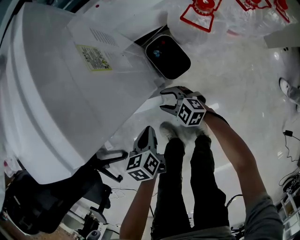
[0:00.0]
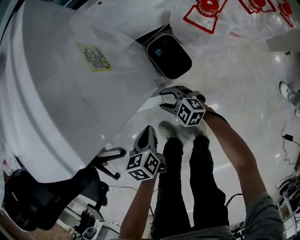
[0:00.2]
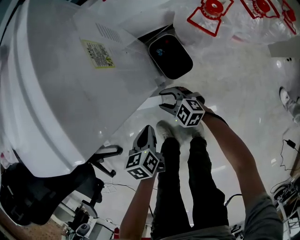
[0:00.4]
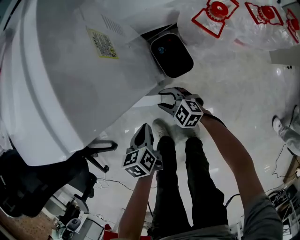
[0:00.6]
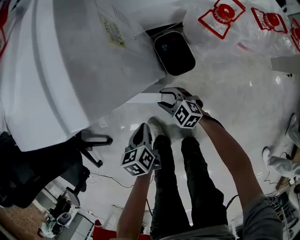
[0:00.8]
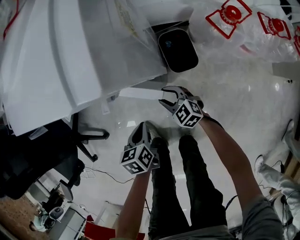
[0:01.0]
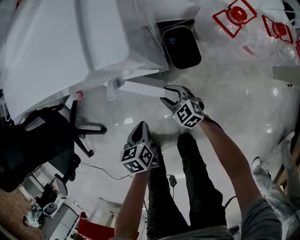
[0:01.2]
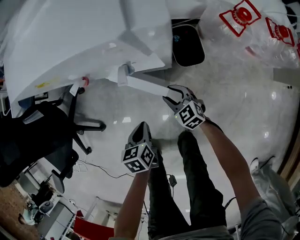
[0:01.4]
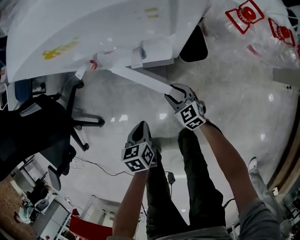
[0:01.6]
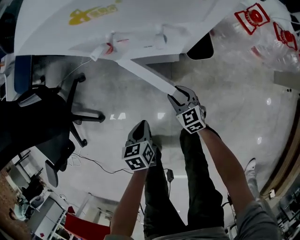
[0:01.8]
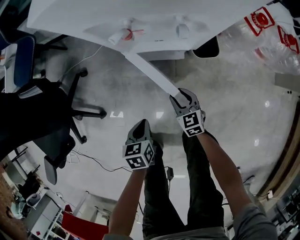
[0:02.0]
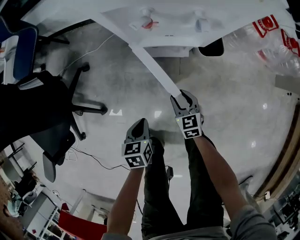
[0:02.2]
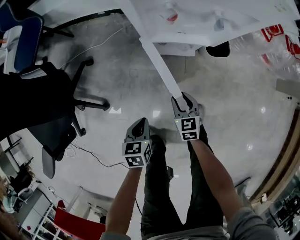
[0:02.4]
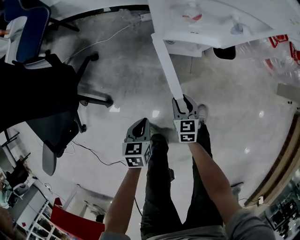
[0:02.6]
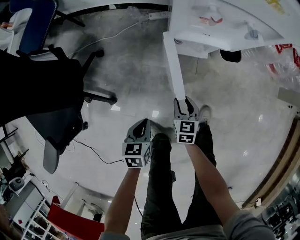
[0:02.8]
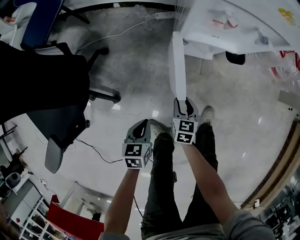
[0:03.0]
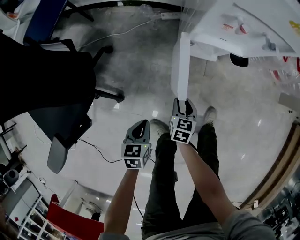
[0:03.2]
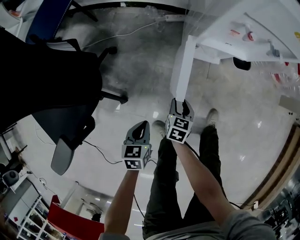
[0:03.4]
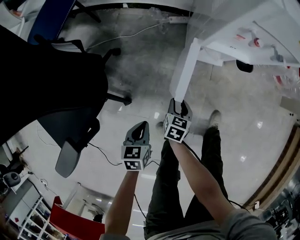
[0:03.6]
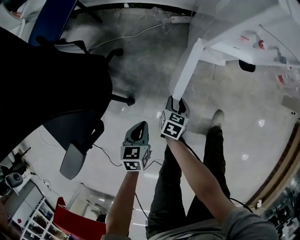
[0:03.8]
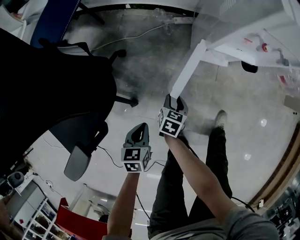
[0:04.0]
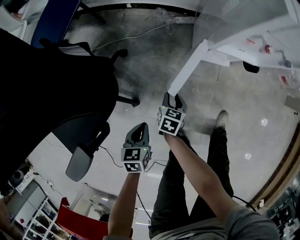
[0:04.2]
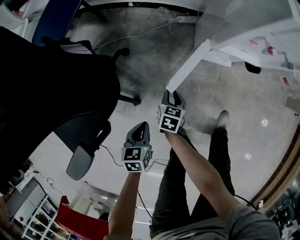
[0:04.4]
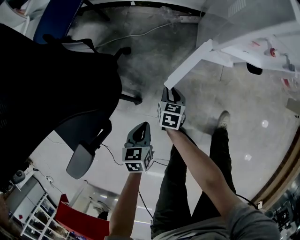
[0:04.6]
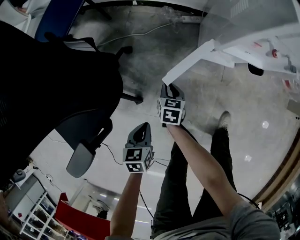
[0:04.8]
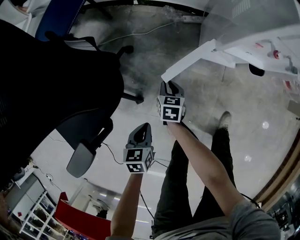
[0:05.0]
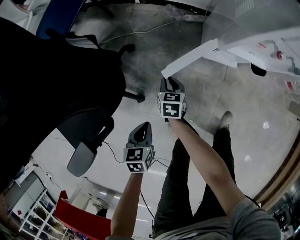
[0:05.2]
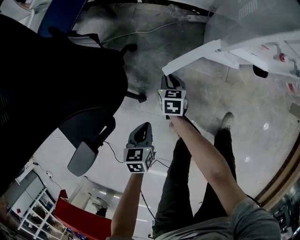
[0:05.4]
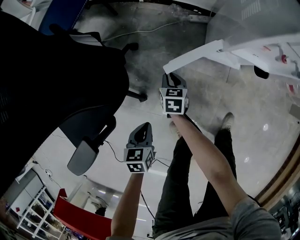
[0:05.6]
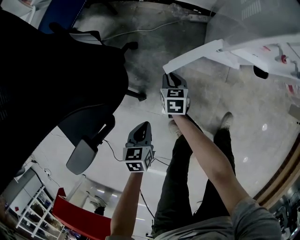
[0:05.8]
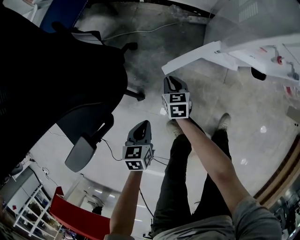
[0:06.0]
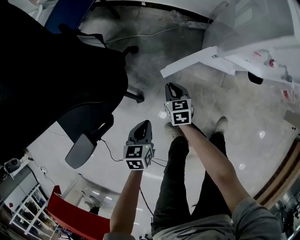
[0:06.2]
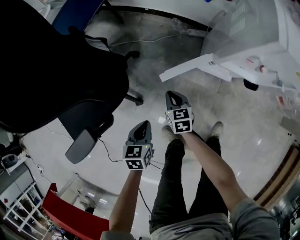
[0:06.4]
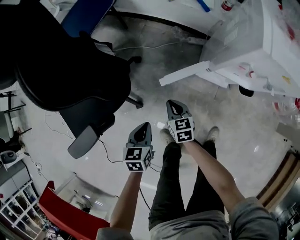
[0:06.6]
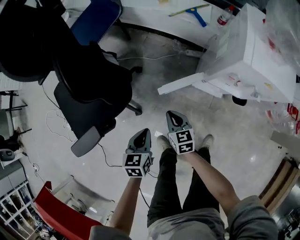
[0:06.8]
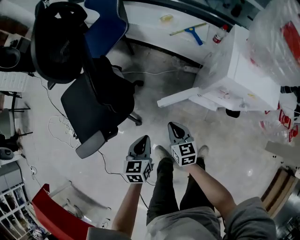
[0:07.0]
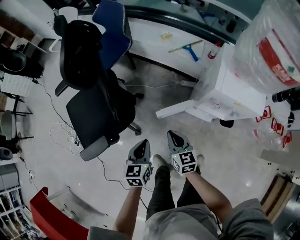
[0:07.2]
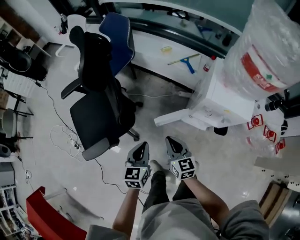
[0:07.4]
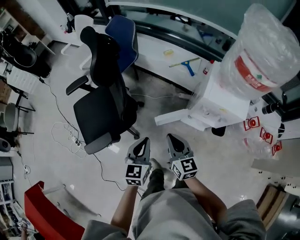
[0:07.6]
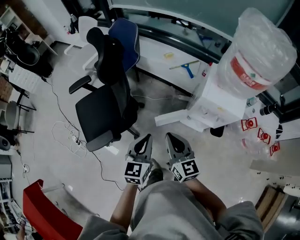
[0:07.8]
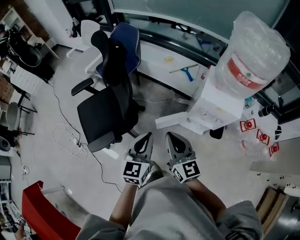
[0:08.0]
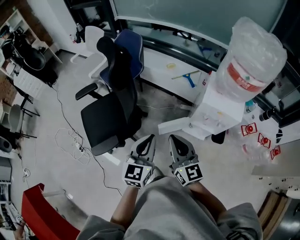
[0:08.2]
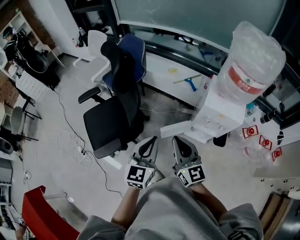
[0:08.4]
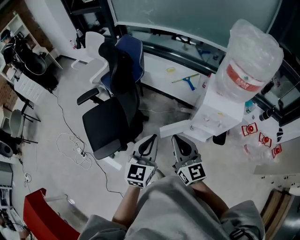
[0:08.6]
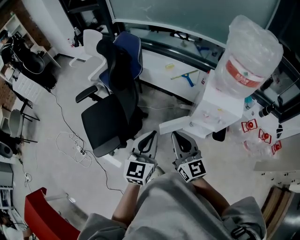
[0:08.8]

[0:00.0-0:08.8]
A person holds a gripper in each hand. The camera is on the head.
0:00.0 to 0:01.4: The right gripper moves backward, roughly 5 cm. Meanwhile the left gripper shifts some 10 cm backward and to the left.
0:01.4 to 0:03.0: Both grippers travel together to the left and backward, about 25 cm. The right gripper rotates about 40 degrees.
0:03.0 to 0:04.4: The two grippers go some 15 cm to the left.
0:04.4 to 0:05.8: The right gripper moves to the left and forward, roughly 10 cm.
0:05.8 to 0:07.4: The grippers both shift upward by roughly 40 cm. The right gripper changes its angle by some 30 degrees, while the left gripper changes its angle by some 30 degrees.
0:07.4 to 0:08.8: Both grippers move upward, roughly 20 cm. The left gripper turns by roughly 20 degrees. The right gripper turns by about 30 degrees.

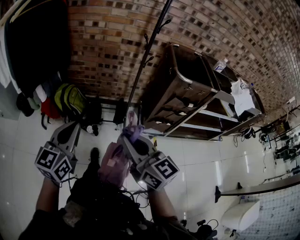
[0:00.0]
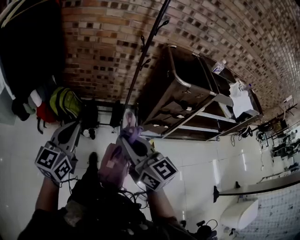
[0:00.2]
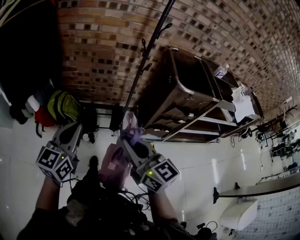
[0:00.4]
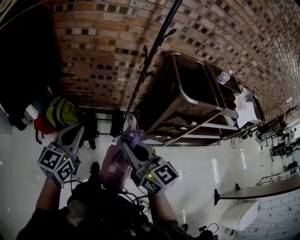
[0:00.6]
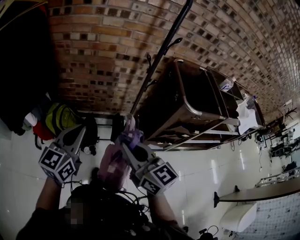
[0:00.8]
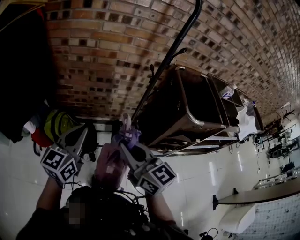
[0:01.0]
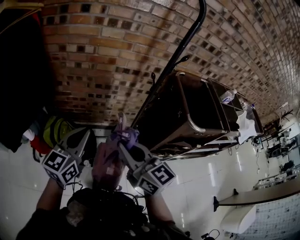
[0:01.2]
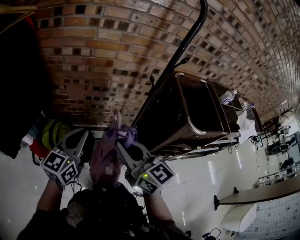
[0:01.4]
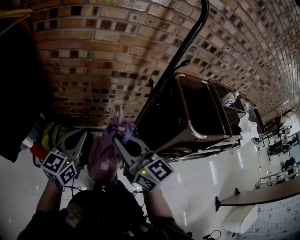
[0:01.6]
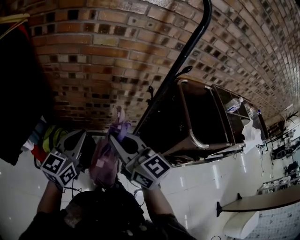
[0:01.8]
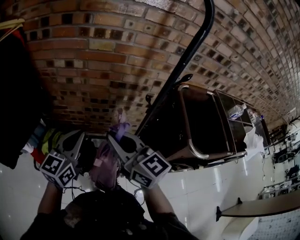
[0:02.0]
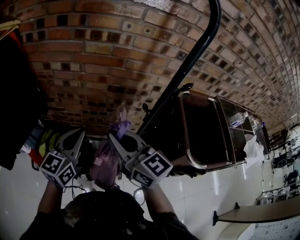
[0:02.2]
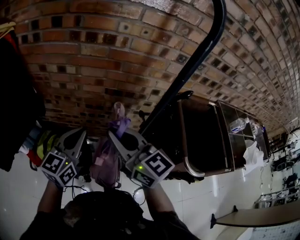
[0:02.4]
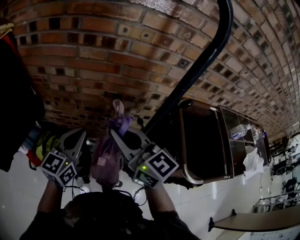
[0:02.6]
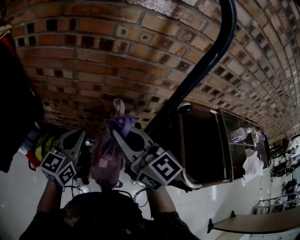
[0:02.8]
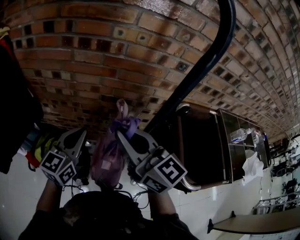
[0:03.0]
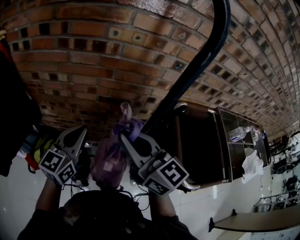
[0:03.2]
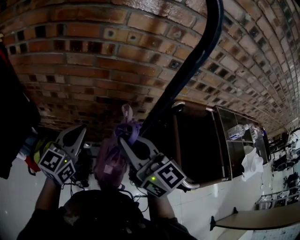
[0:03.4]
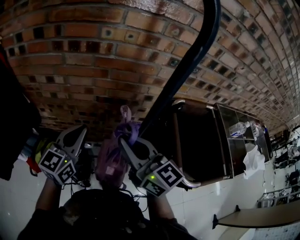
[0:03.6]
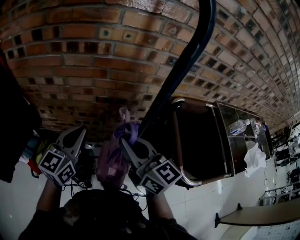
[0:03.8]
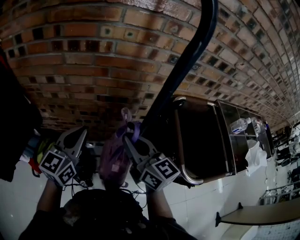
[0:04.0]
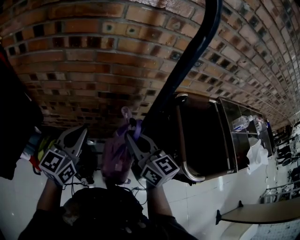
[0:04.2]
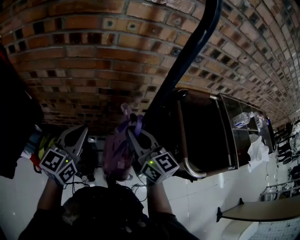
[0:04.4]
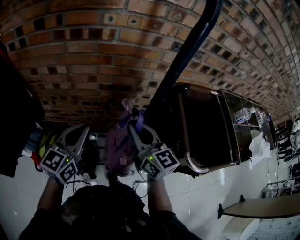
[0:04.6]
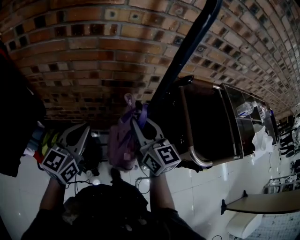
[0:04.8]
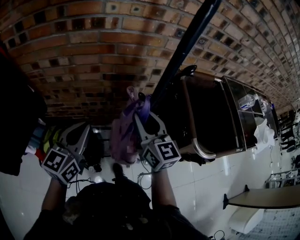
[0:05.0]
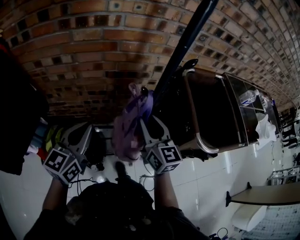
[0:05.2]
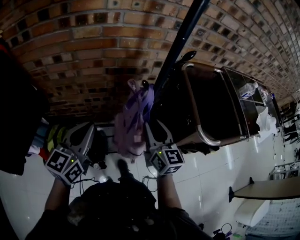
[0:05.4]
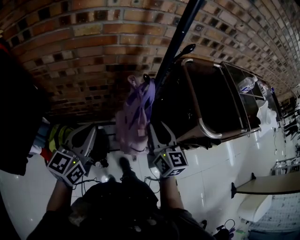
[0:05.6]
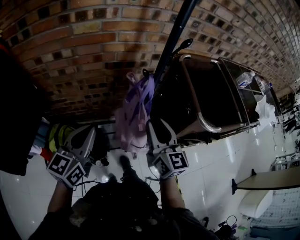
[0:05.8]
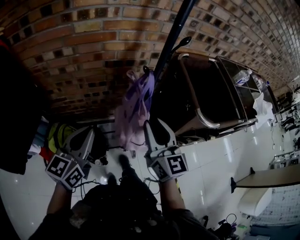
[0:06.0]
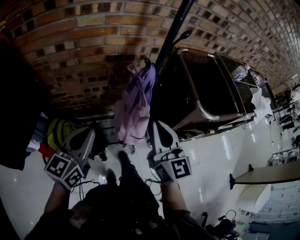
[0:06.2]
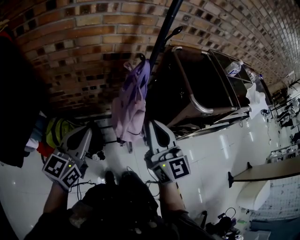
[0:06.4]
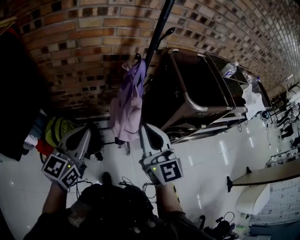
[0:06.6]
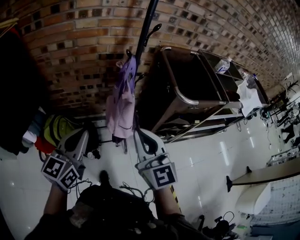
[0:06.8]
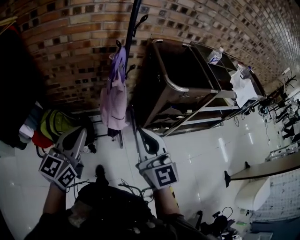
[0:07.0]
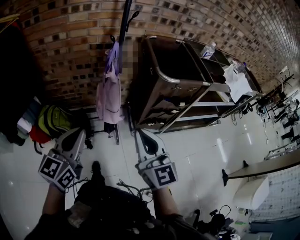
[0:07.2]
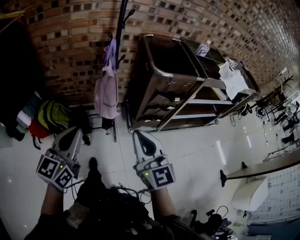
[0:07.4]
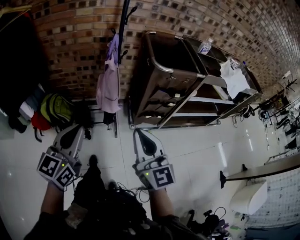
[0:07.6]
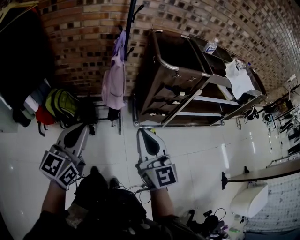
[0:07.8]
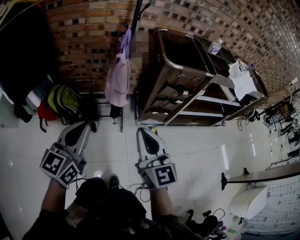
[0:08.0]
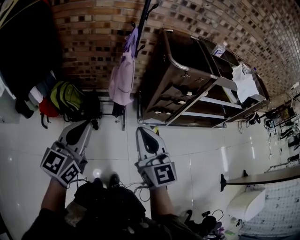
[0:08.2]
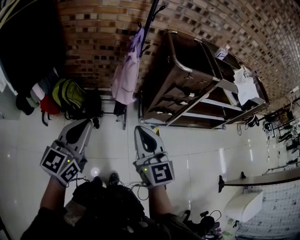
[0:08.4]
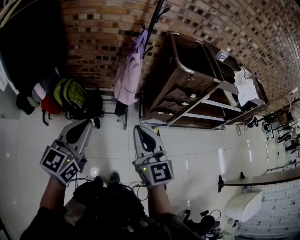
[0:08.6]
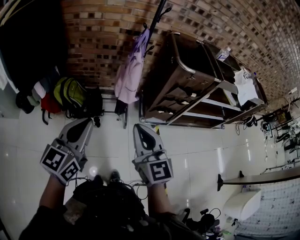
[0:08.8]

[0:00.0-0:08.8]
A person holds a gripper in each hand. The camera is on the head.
0:00.0 to 0:01.4: Both grippers travel together forward, about 40 cm.
0:01.4 to 0:03.0: The two grippers go about 25 cm forward and to the right.
0:03.0 to 0:04.4: The right gripper goes some 10 cm downward and to the right.
0:04.4 to 0:05.8: The two grippers go approximately 10 cm backward. The right gripper changes its angle by approximately 20 degrees, and opens up.
0:05.8 to 0:07.4: The right gripper travels backward by some 40 cm, and closes its fingers, while the left gripper heads backward and to the right, covering some 40 cm.
0:07.4 to 0:08.8: The right gripper goes about 15 cm to the left and backward; the left gripper moves backward and to the left, about 10 cm.

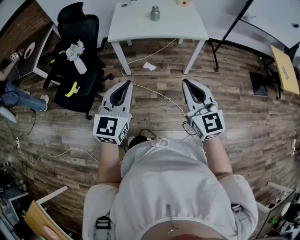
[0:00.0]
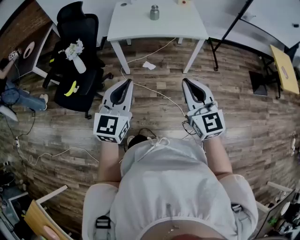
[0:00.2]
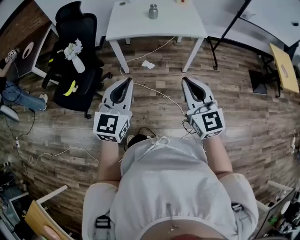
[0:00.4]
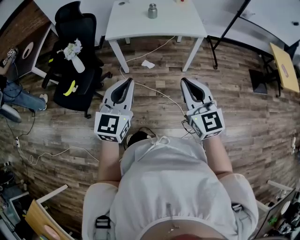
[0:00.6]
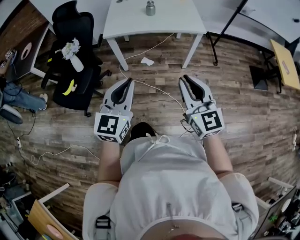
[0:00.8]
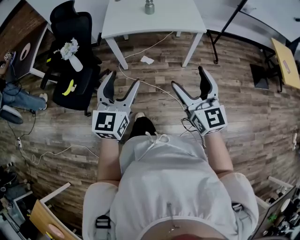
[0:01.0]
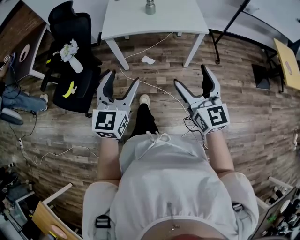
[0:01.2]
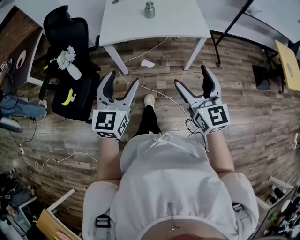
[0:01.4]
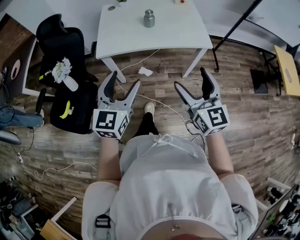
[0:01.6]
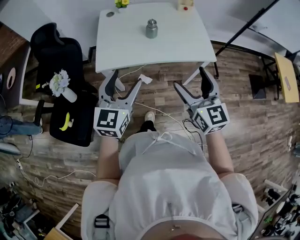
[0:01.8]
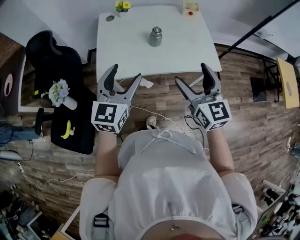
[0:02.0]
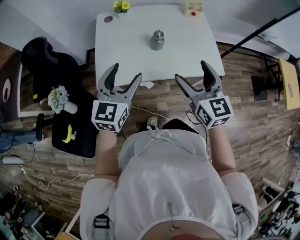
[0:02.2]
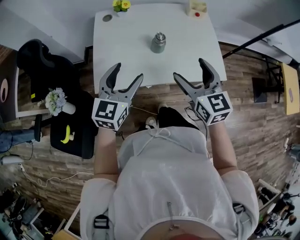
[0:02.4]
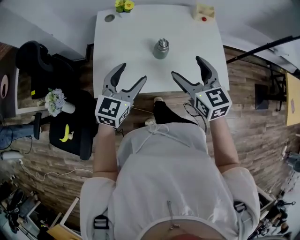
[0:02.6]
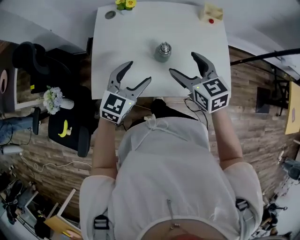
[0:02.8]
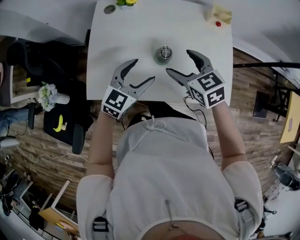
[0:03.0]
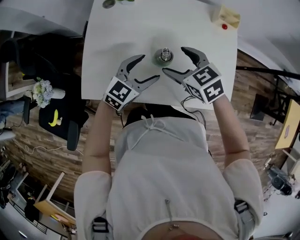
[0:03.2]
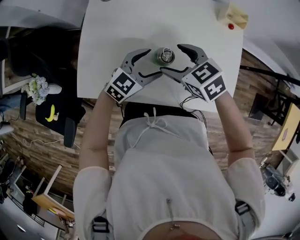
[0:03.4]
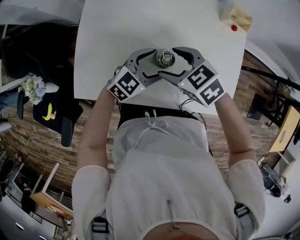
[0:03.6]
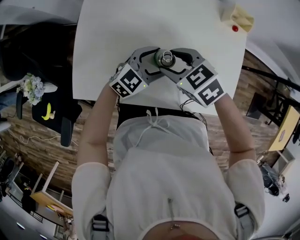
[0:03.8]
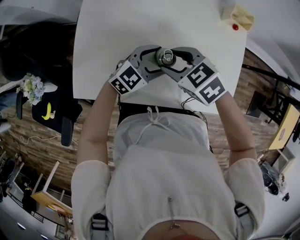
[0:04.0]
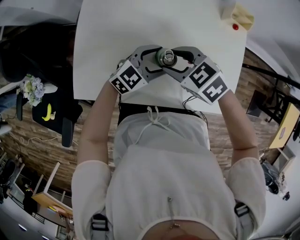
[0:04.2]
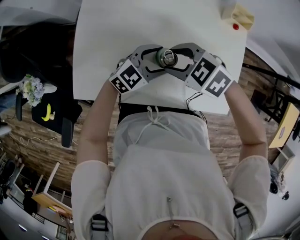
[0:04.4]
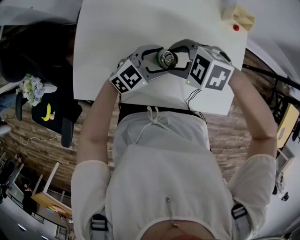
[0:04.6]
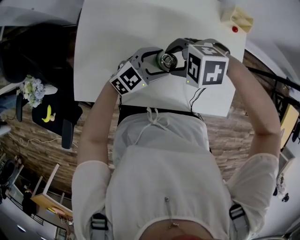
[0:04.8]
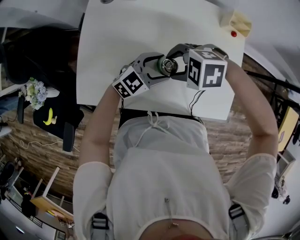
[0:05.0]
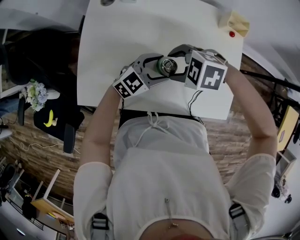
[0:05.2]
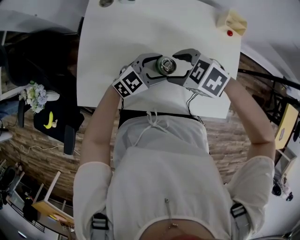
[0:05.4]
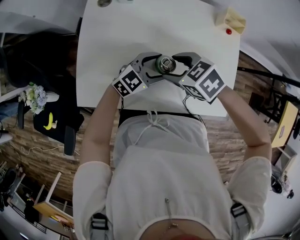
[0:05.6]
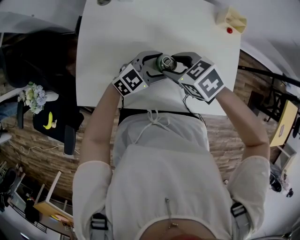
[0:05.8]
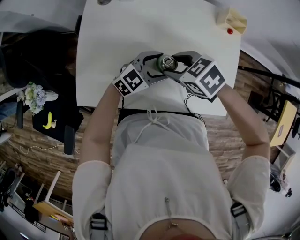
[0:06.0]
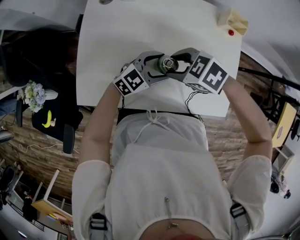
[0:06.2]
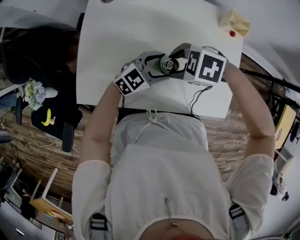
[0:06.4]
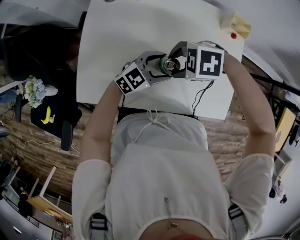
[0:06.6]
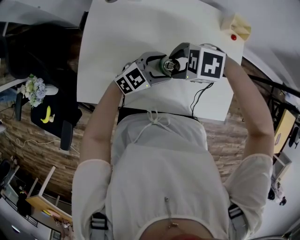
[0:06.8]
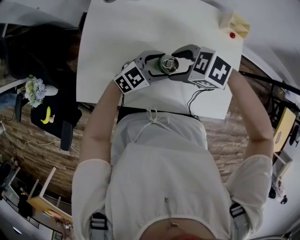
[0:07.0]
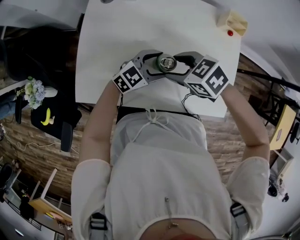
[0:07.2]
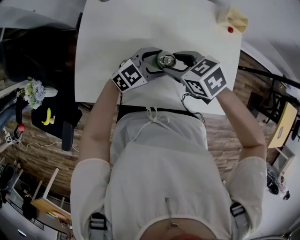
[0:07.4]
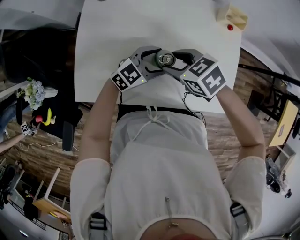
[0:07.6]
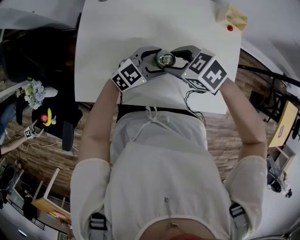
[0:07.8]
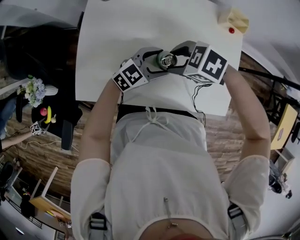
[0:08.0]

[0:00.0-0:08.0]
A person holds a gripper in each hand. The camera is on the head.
0:00.0 to 0:01.6: The grippers both shift forward by roughly 20 cm. The left gripper opens up. Meanwhile the right gripper opens up.
0:01.6 to 0:03.2: The two grippers travel together, forward, about 50 cm. The left gripper heads downward, covering about 20 cm, and turns by roughly 30 degrees. Meanwhile the right gripper tips its fingers downward by about 40 degrees.
0:03.2 to 0:04.8: The left gripper moves about 10 cm, while the right gripper turns by about 60 degrees, and closes.
